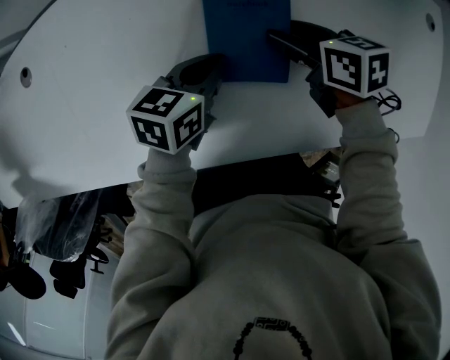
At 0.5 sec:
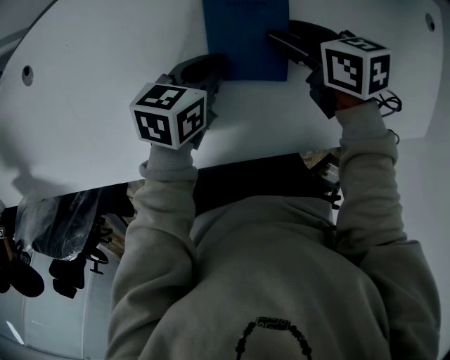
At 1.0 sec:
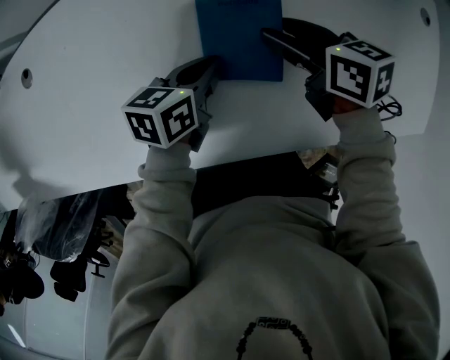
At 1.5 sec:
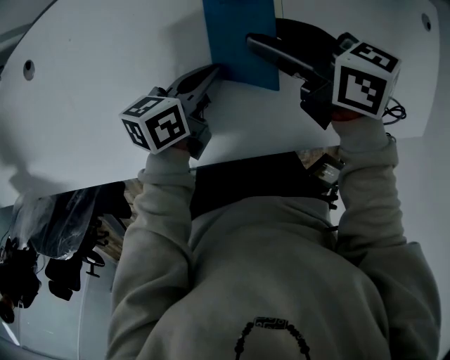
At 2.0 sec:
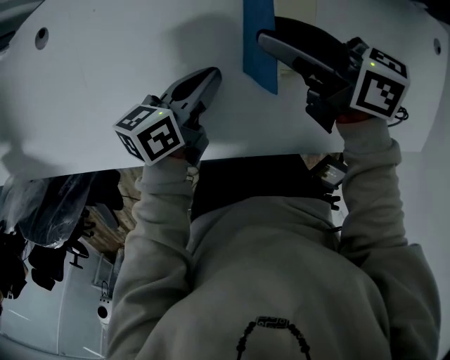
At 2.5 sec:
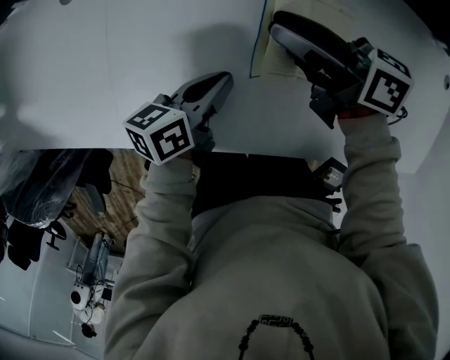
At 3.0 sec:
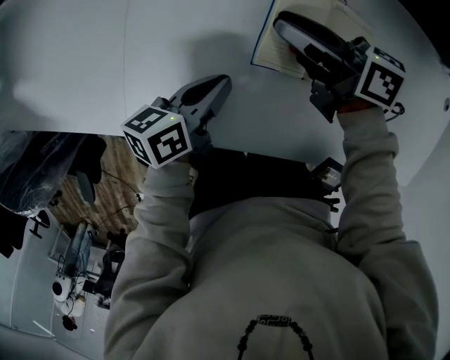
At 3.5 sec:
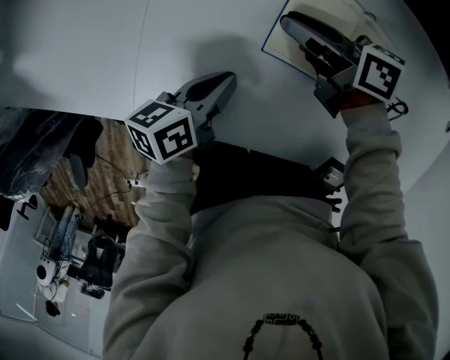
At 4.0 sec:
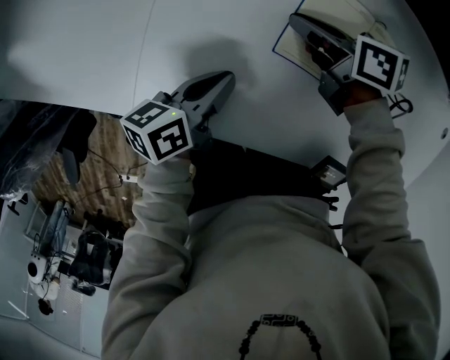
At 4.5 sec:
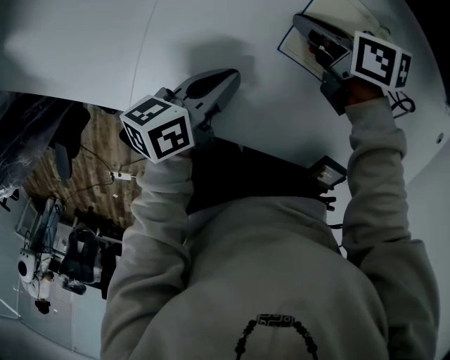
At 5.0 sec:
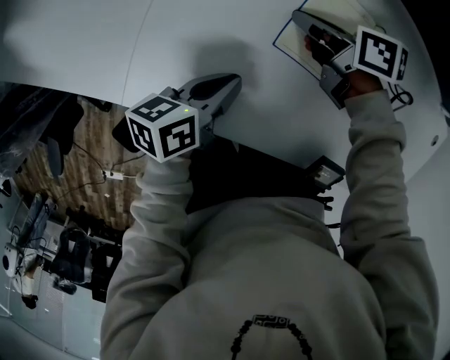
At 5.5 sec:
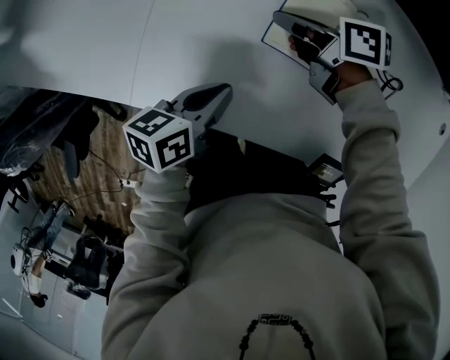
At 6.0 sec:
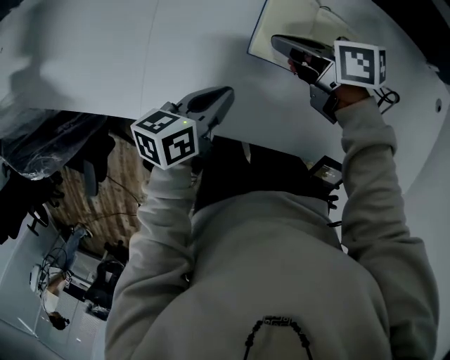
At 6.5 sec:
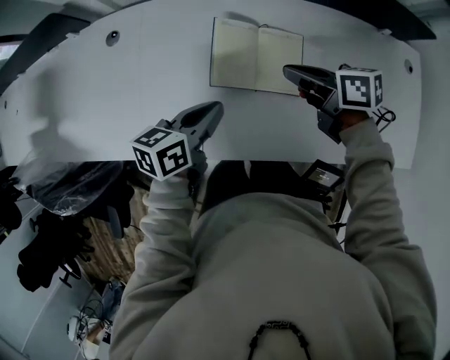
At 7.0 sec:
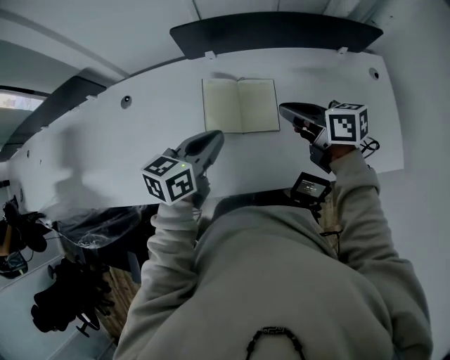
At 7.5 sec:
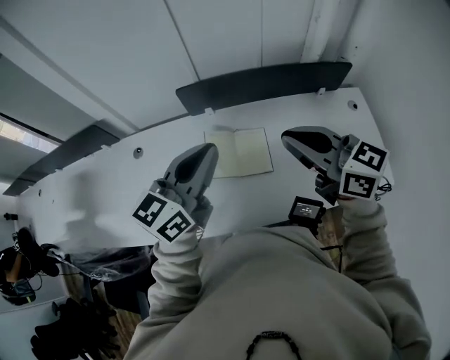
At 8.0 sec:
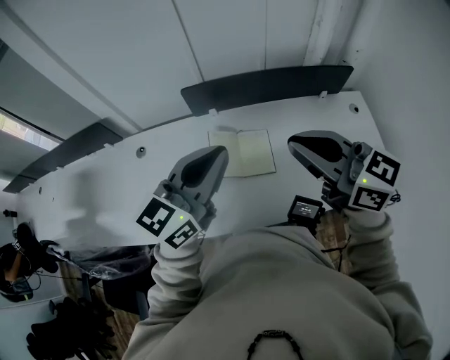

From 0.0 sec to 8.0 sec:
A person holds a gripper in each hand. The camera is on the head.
From 0.0 sec to 2.0 sec: The left gripper goes some 5 cm to the left, and swivels some 30 degrees; the right gripper moves upward and to the left, about 15 cm, and tips its fingers upward by some 30 degrees.
From 2.0 sec to 4.0 sec: The left gripper moves to the left and backward, about 15 cm; the right gripper moves to the left and downward, some 15 cm, rotates some 30 degrees, and closes up.
From 4.0 sec to 6.0 sec: The grippers stay close to where they were, moving slightly.
From 6.0 sec to 8.0 sec: The two grippers go about 40 cm upward. The left gripper twists roughly 50 degrees clockwise, seen from behind. Meanwhile the right gripper swivels roughly 60 degrees.

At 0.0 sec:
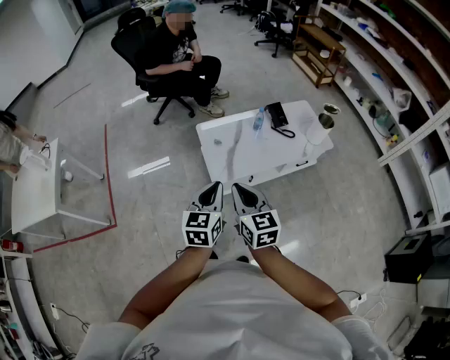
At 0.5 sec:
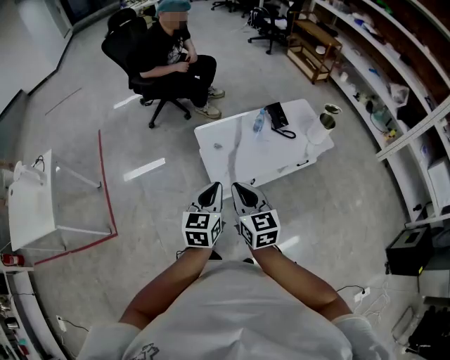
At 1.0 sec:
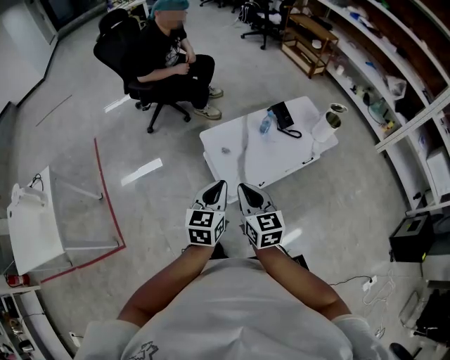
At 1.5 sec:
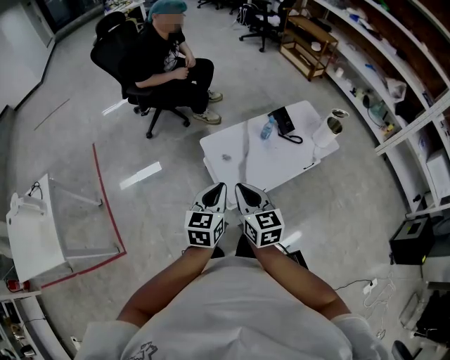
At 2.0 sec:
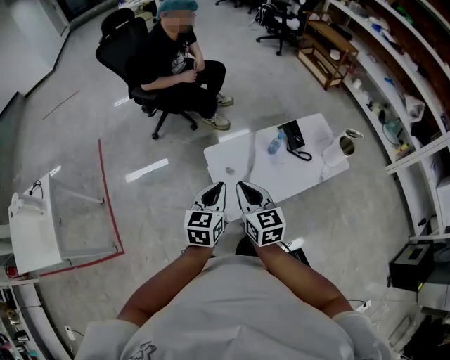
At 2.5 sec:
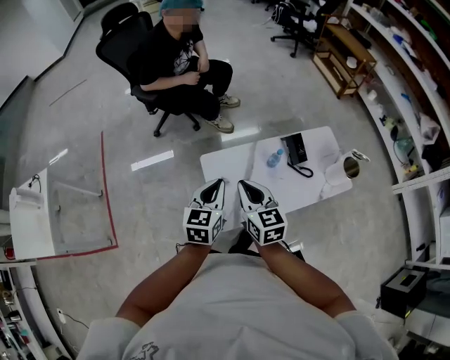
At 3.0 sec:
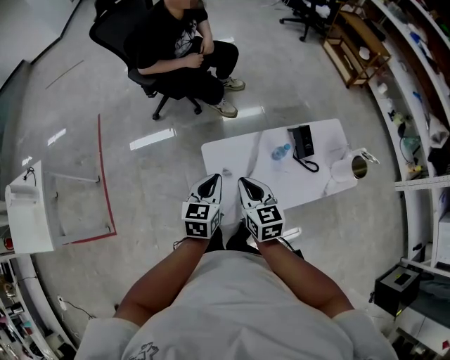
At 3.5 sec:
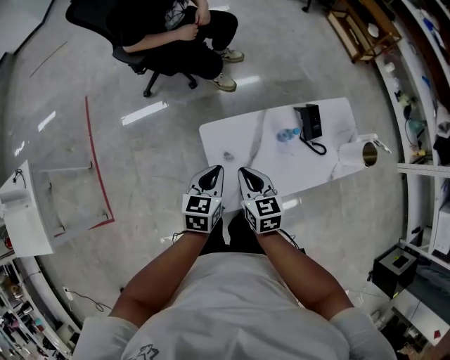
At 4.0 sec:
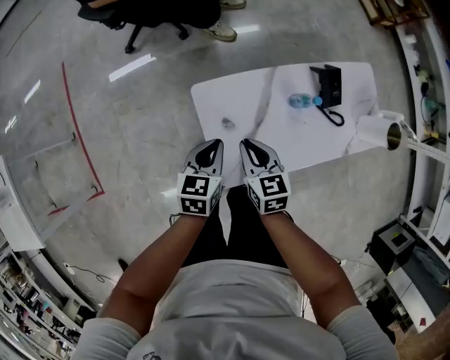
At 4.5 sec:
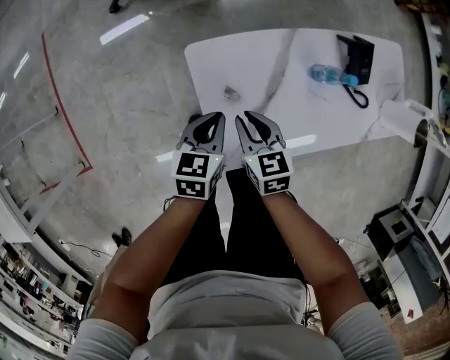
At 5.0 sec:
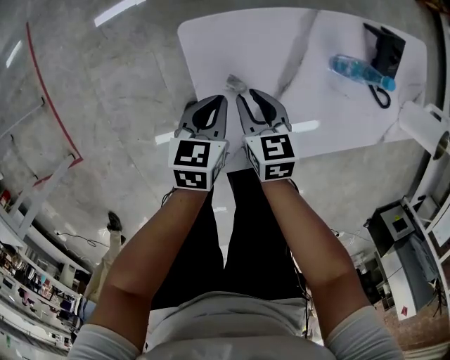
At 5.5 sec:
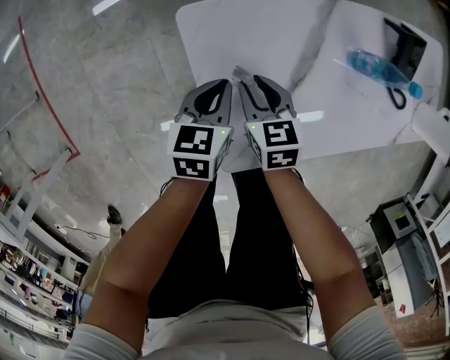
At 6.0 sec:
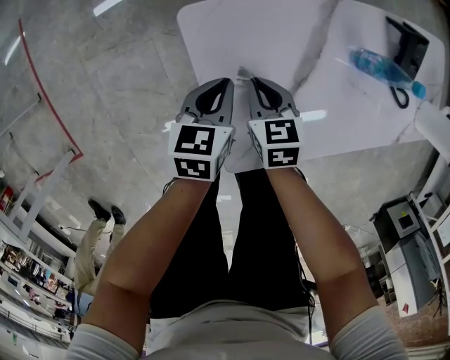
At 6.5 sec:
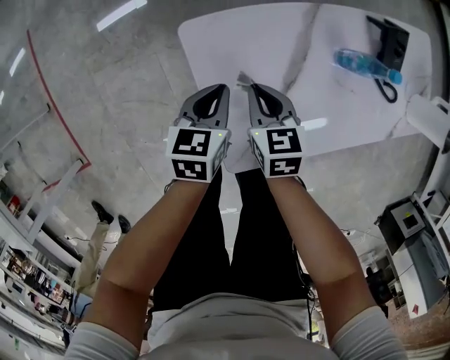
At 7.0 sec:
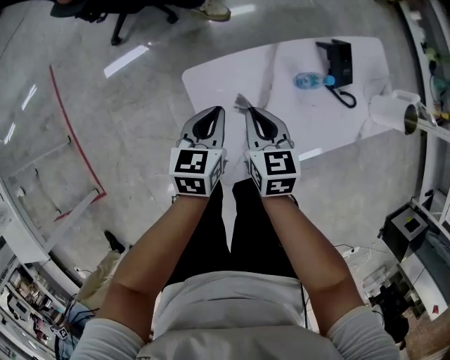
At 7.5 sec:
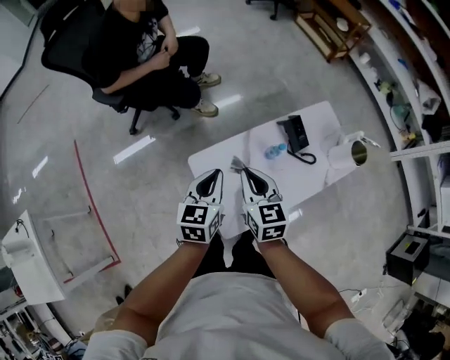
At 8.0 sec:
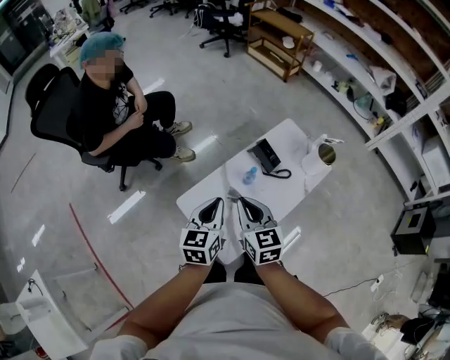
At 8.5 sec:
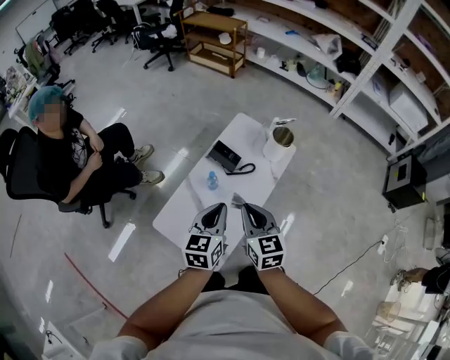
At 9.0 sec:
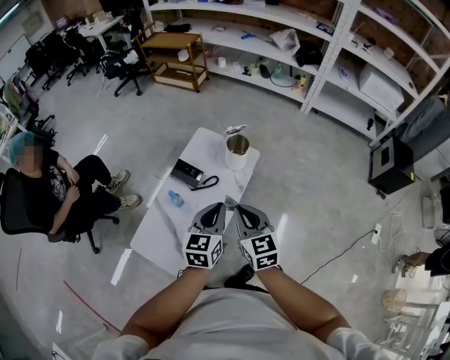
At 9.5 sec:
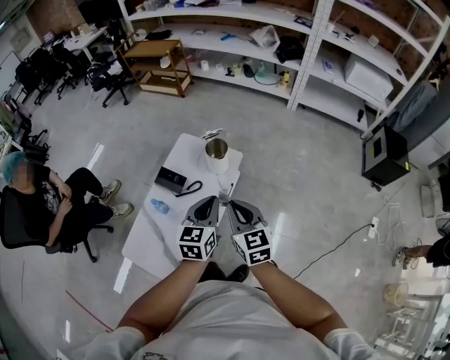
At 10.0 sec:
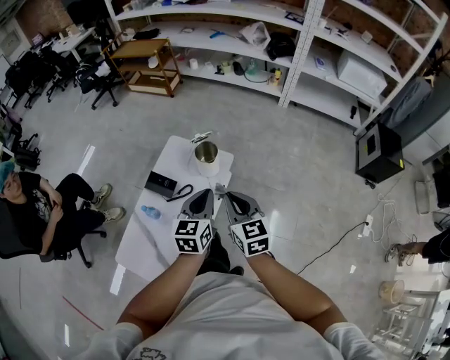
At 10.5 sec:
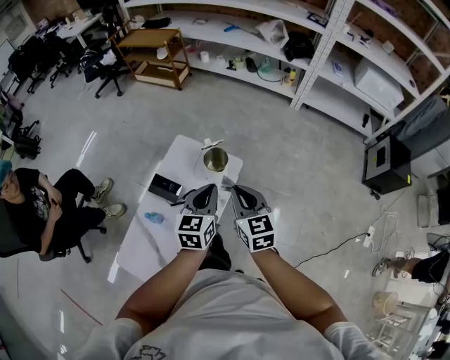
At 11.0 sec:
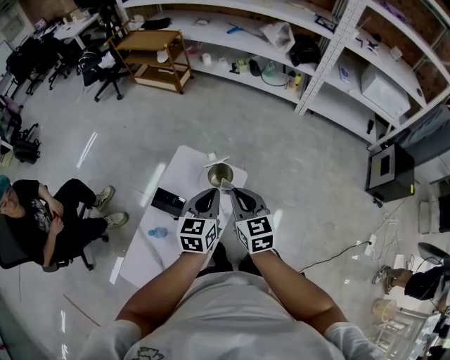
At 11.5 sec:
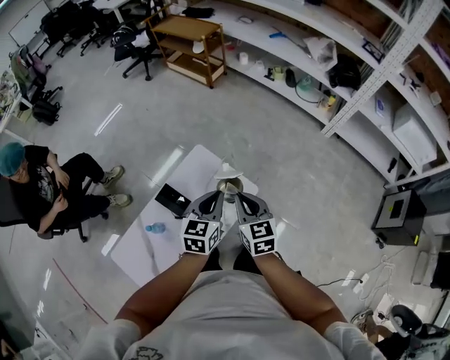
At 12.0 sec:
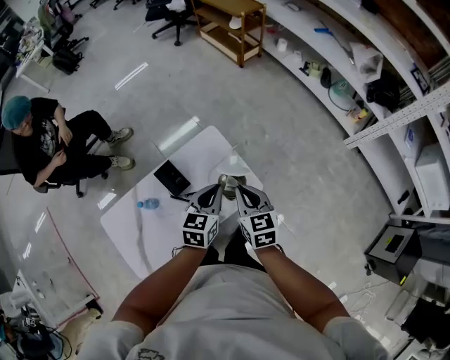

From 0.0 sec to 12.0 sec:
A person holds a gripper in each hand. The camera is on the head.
From 0.0 sec to 2.0 sec: Both grippers travel together forward, approximately 25 cm.
From 2.0 sec to 4.0 sec: The grippers both shift downward and forward by about 30 cm. The right gripper turns by roughly 20 degrees. The left gripper rotates about 20 degrees.
From 4.0 sec to 6.0 sec: The grippers both shift downward by roughly 25 cm. The right gripper opens, then closes once more.
From 6.0 sec to 8.0 sec: The two grippers go approximately 50 cm upward. The left gripper turns by roughly 30 degrees. Meanwhile the right gripper tips its fingers upward by some 30 degrees.
From 8.0 sec to 10.0 sec: Both grippers are carried approximately 50 cm. The left gripper swivels about 30 degrees, while the right gripper swivels approximately 30 degrees.
From 10.0 sec to 12.0 sec: The left gripper changes place by some 30 cm, and changes its angle by about 30 degrees; the right gripper changes place by about 35 cm, and rotates some 30 degrees.

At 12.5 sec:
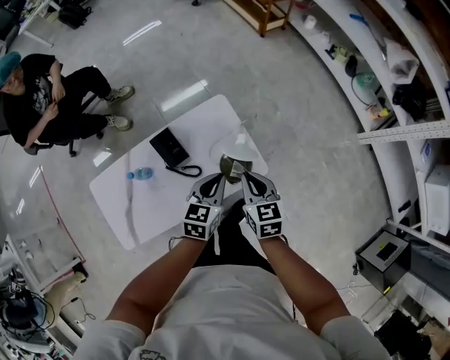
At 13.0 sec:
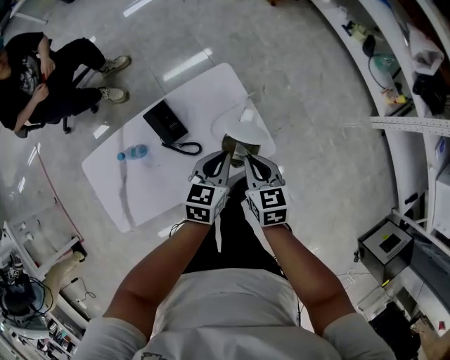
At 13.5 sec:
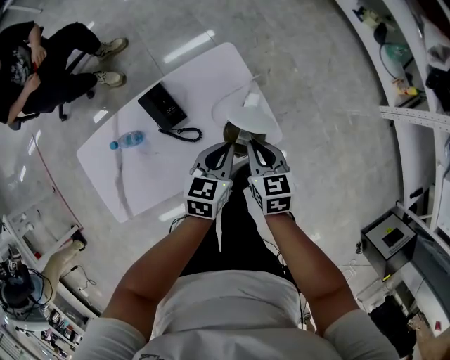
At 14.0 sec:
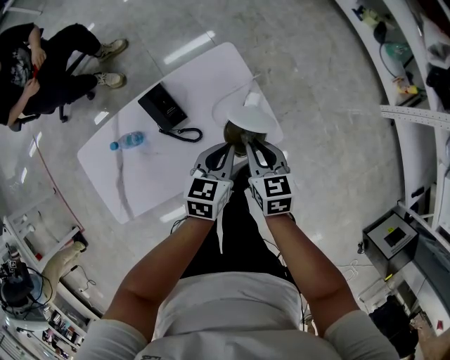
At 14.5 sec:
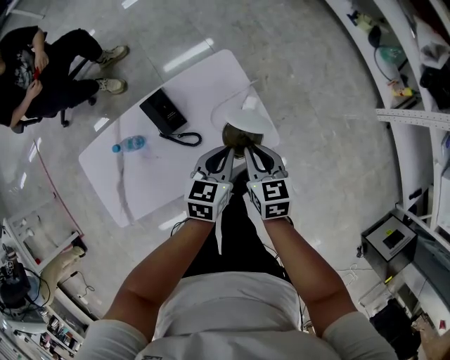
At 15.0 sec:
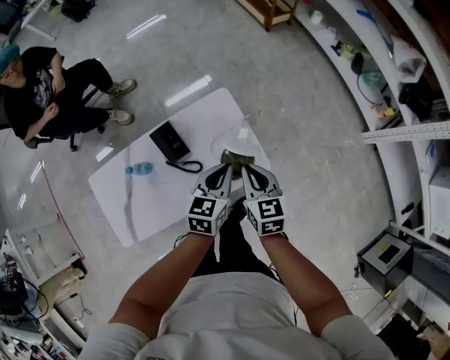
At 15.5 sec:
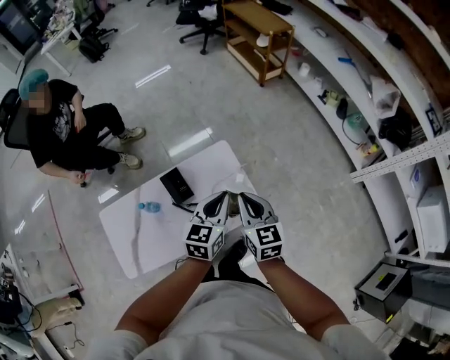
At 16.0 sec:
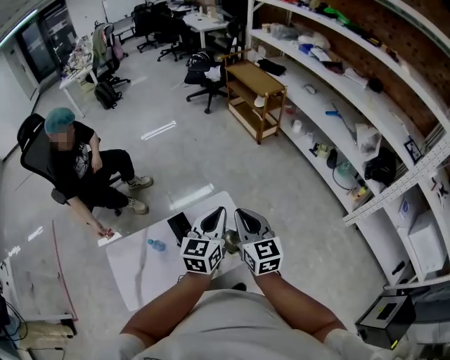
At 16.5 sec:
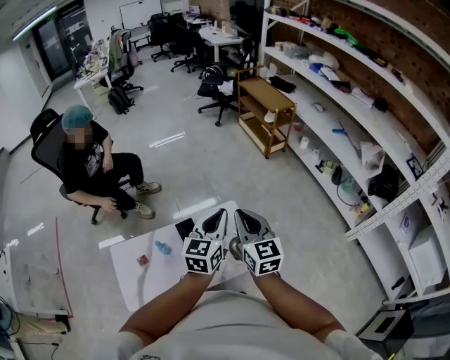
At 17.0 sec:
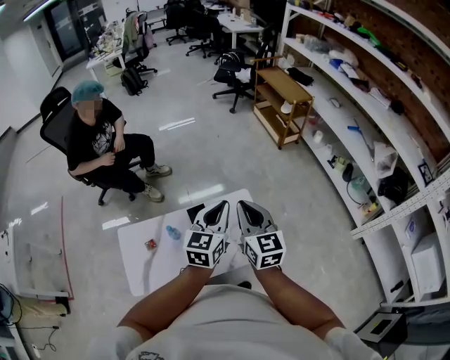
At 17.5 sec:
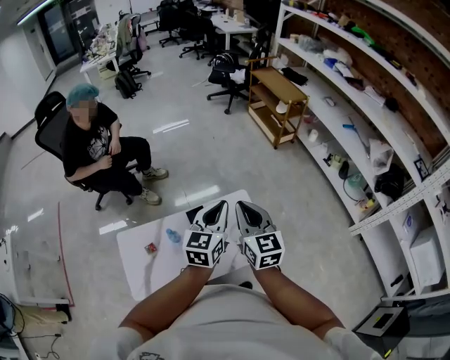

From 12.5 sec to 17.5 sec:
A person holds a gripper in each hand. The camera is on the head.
From 12.5 sec to 15.0 sec: The right gripper travels downward and back again, about 10 cm each way; the left gripper moves approximately 10 cm downward and comes back.
From 15.0 sec to 17.5 sec: The grippers both shift upward and to the left by roughly 30 cm. The left gripper swivels about 30 degrees; the right gripper changes its angle by approximately 30 degrees.

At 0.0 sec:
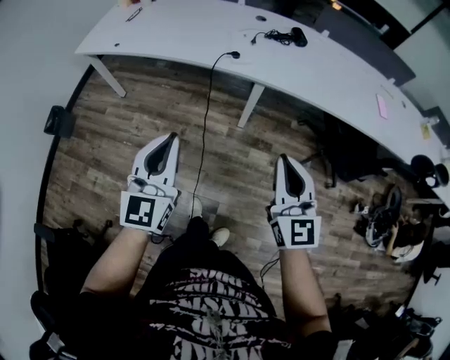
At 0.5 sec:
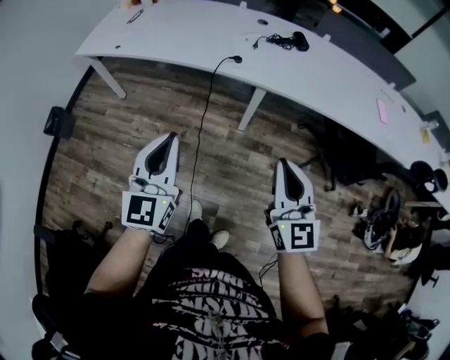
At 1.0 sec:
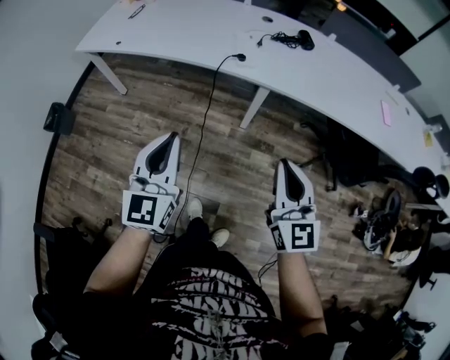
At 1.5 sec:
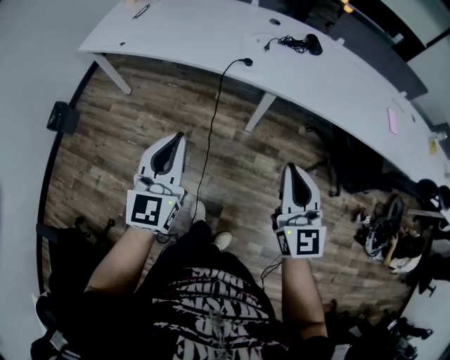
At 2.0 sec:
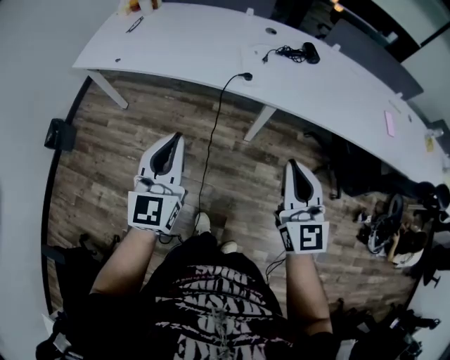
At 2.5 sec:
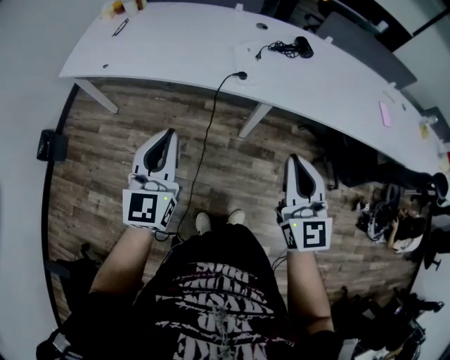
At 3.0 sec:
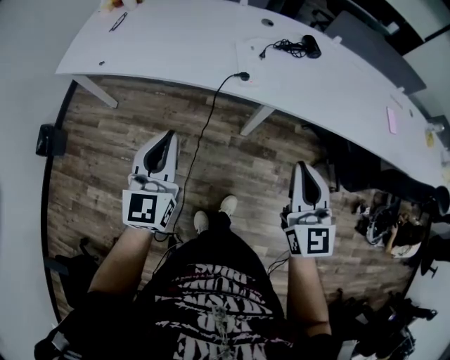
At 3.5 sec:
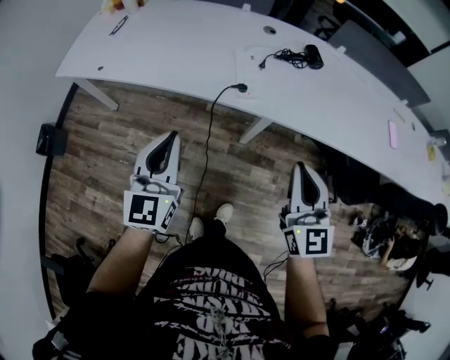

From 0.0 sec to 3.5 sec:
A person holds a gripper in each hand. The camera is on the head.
From 0.0 sec to 2.0 sec: The right gripper shifts roughly 10 cm forward. Meanwhile the left gripper moves forward and to the left, roughly 15 cm.
From 2.0 sec to 3.5 sec: Both grippers move forward, approximately 10 cm.
